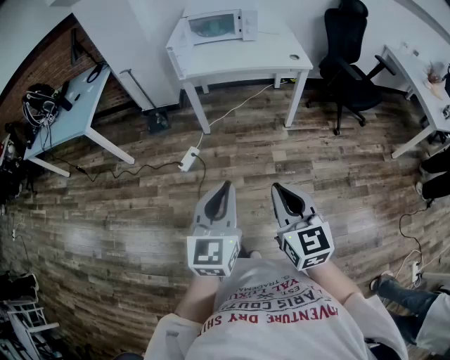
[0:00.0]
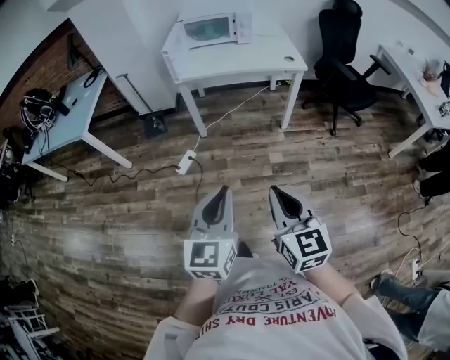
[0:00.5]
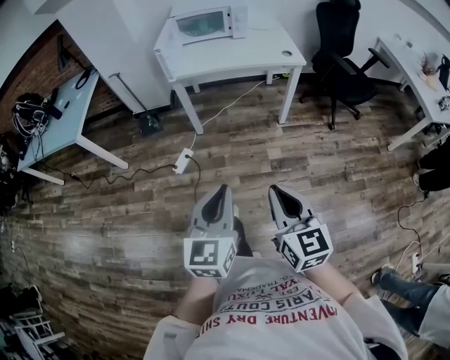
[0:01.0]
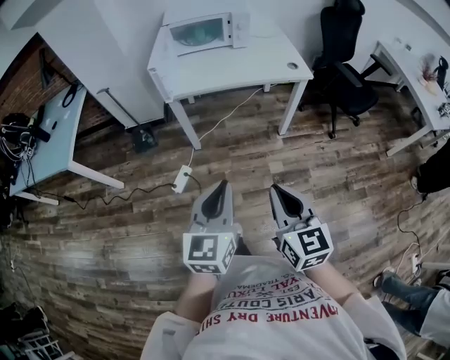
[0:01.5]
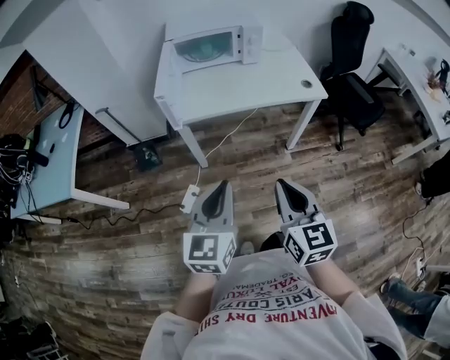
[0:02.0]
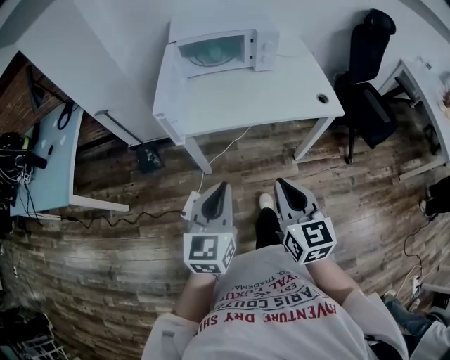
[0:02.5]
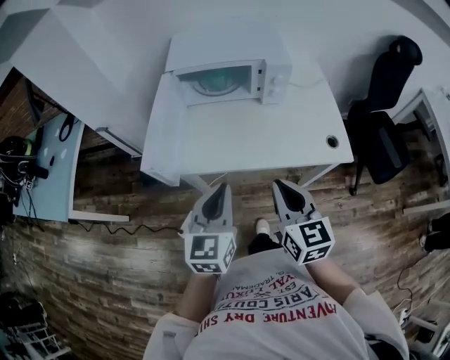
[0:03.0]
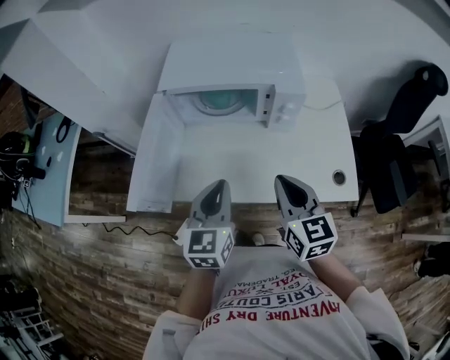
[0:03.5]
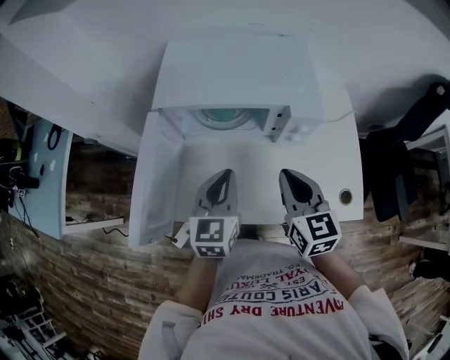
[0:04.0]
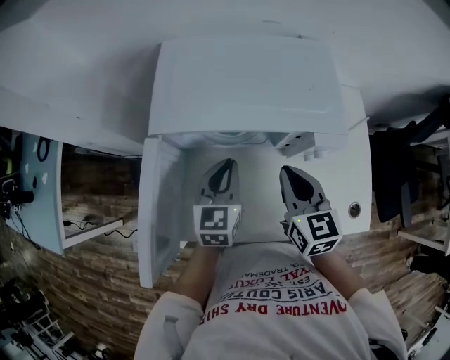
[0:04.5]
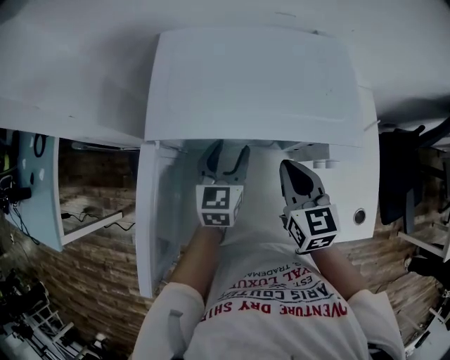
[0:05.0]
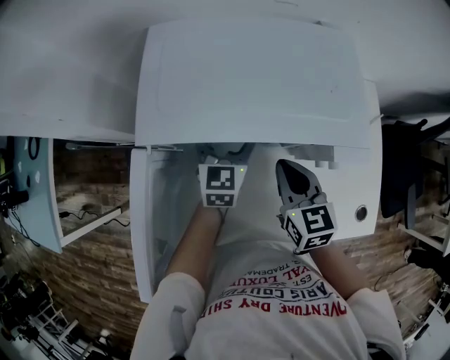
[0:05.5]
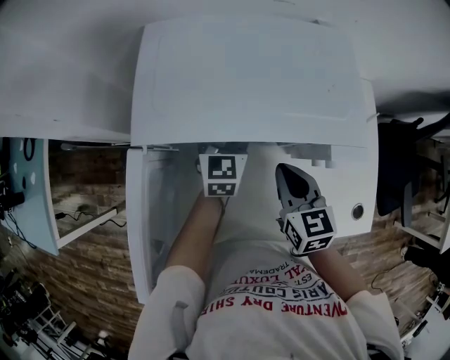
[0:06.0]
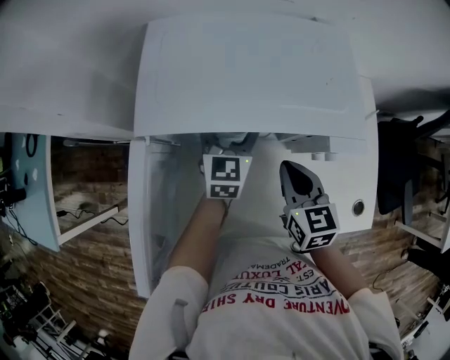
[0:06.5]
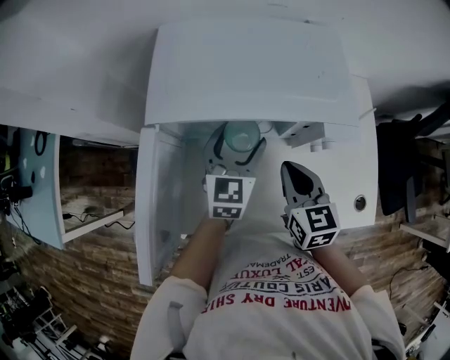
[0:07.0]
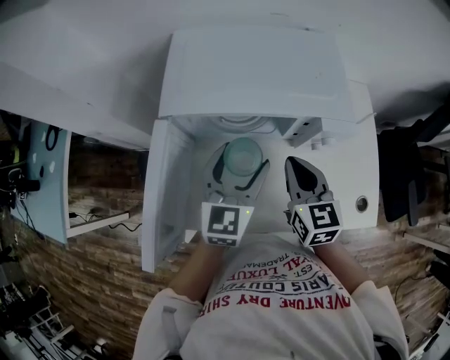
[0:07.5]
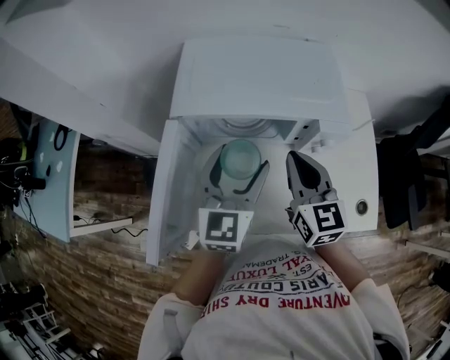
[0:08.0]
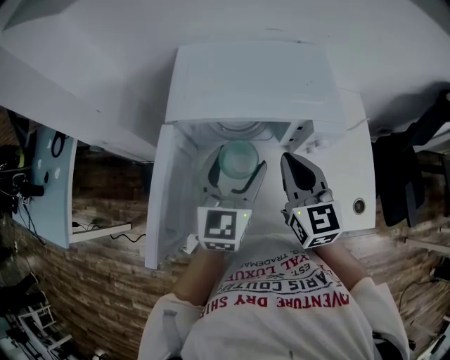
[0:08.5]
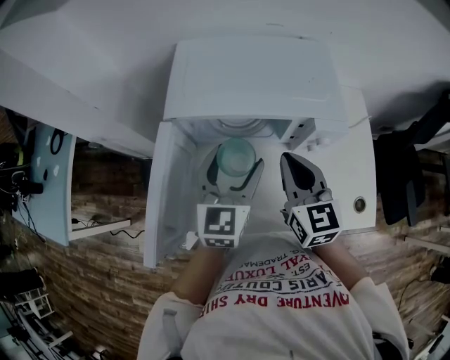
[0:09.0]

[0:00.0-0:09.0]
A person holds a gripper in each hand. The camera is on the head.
0:00.0 to 0:02.0: The two grippers go approximately 35 cm forward.
0:02.0 to 0:04.5: Both grippers are carried forward, about 60 cm.
0:04.5 to 0:07.0: The left gripper goes forward and returns, about 15 cm each way, and opens.
0:07.0 to 0:09.0: The left gripper shifts approximately 10 cm upward and backward. Meanwhile the right gripper is displaced upward by roughly 10 cm.

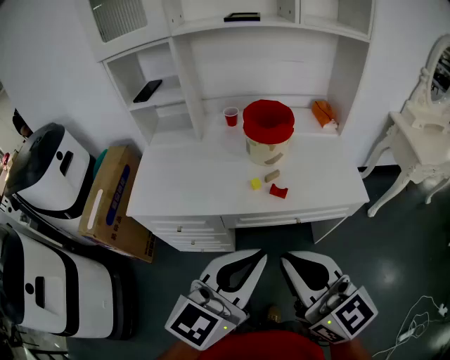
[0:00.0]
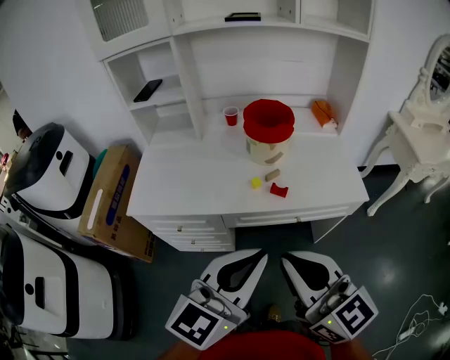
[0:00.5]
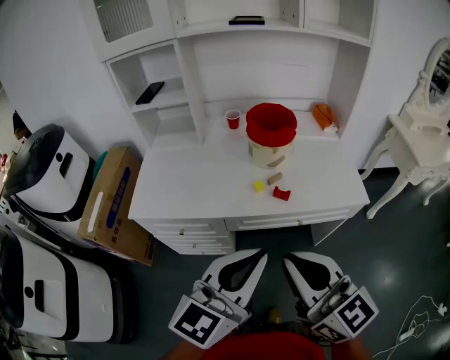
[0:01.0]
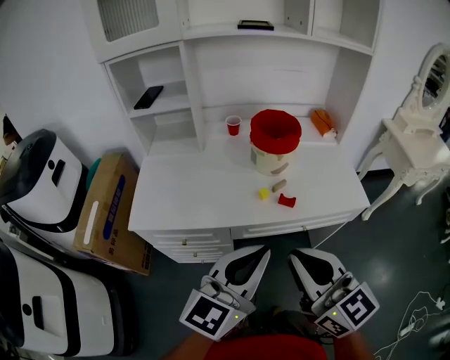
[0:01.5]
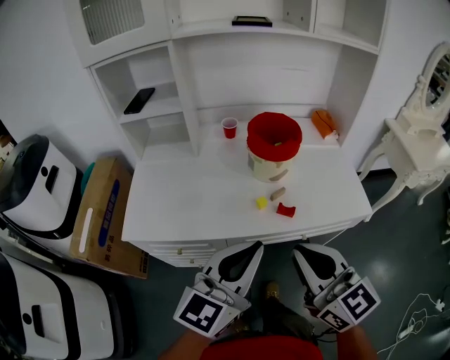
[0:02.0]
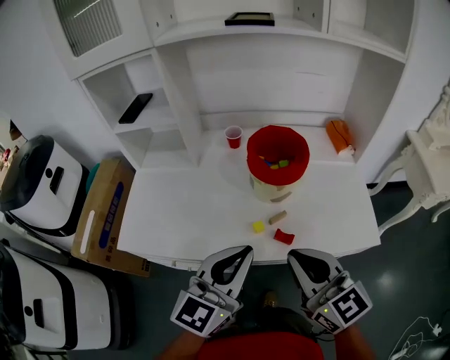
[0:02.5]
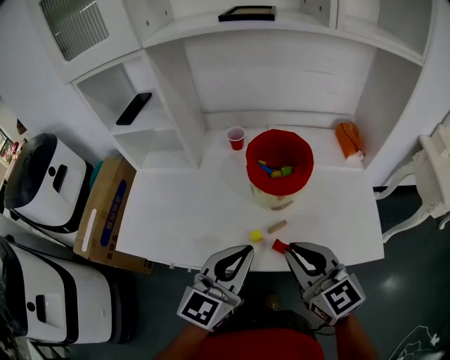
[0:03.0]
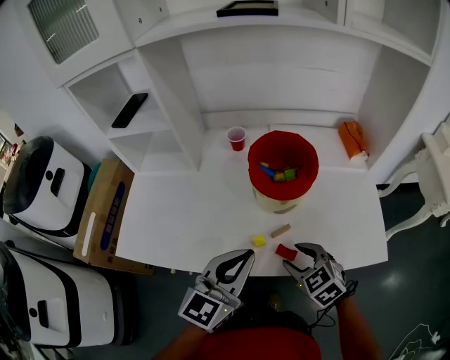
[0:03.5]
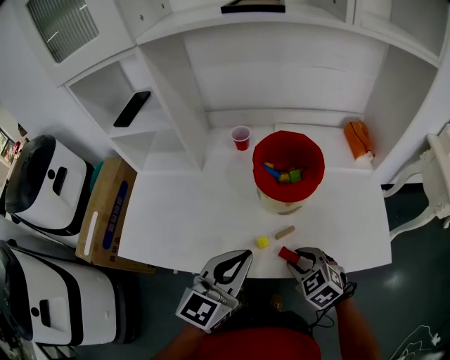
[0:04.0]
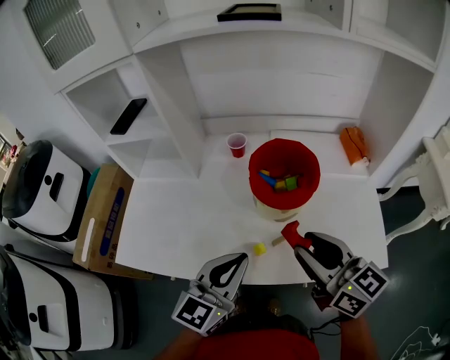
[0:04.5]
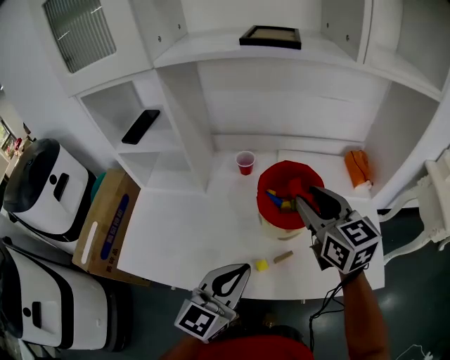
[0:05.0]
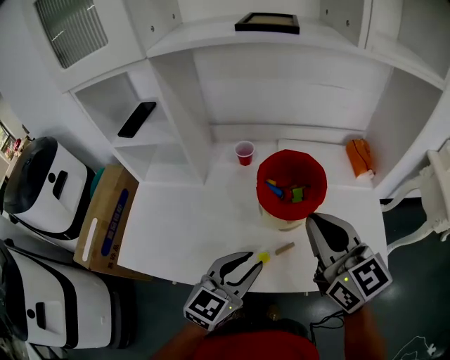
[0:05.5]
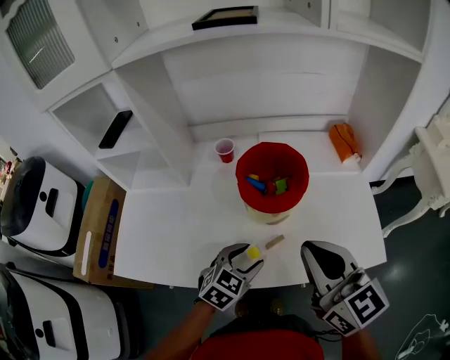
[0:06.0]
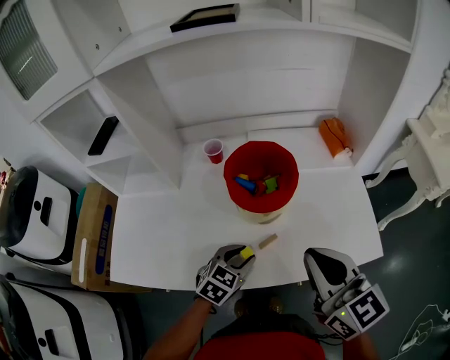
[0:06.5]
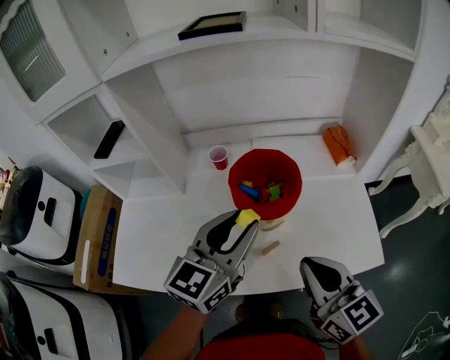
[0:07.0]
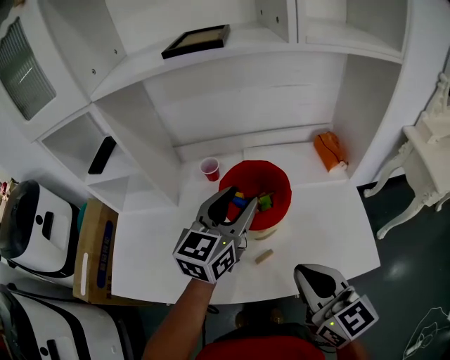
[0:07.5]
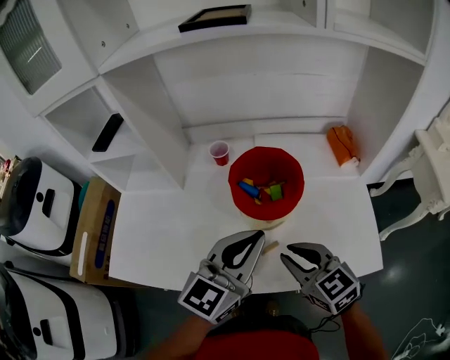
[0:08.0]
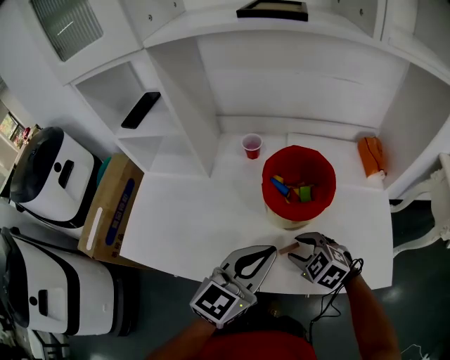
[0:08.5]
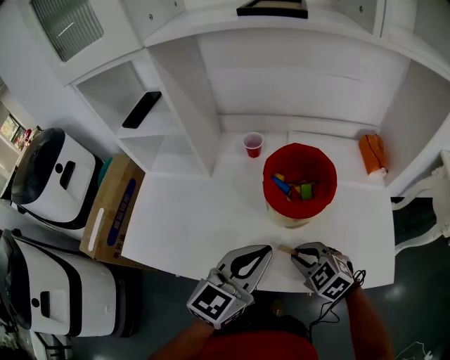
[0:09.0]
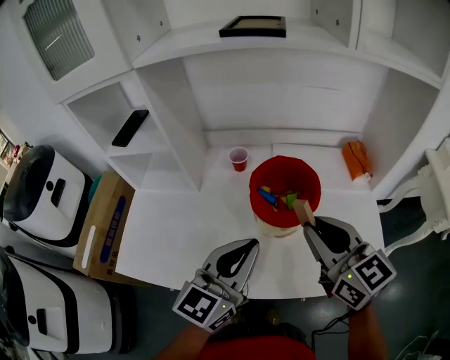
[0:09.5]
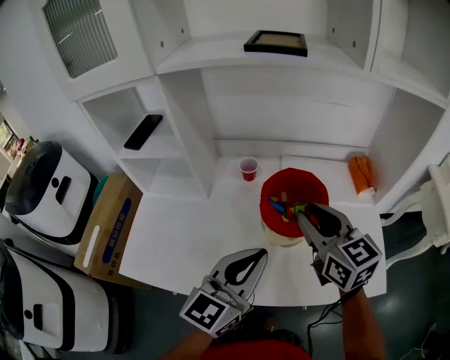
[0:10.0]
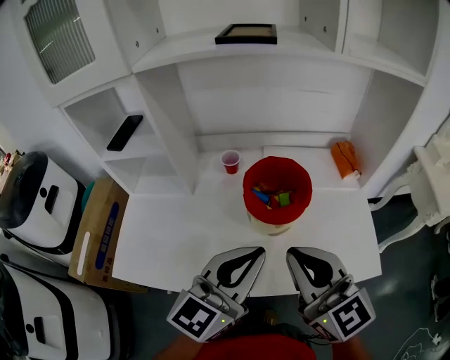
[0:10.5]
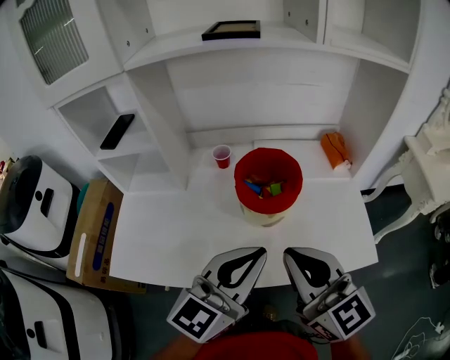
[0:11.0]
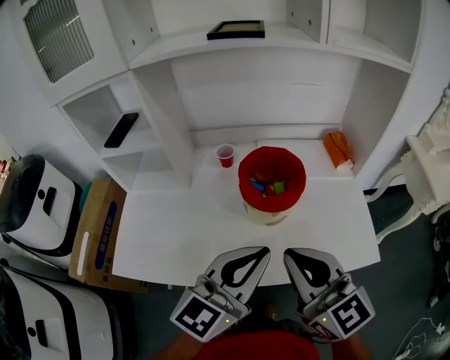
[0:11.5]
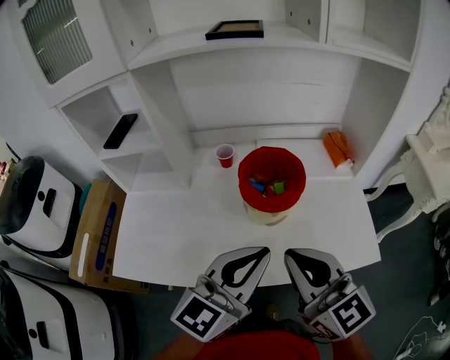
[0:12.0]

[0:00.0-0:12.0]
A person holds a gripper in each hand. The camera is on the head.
0:00.0 to 0:02.0: The left gripper moves forward and to the left, about 10 cm, while the right gripper shifts approximately 10 cm forward.
0:02.0 to 0:04.0: The left gripper moves forward and downward, roughly 20 cm. The right gripper goes approximately 30 cm downward and forward, tilts its fingers approximately 50 degrees downward, and opens up.
0:04.0 to 0:06.0: The right gripper heads upward, covering about 25 cm, angles its fingers upward, by roughly 40 degrees, and closes up. The left gripper is displaced downward by approximately 15 cm, points its fingers some 30 degrees further downward, and opens up.
0:06.0 to 0:08.0: The right gripper travels downward by about 15 cm, changes its angle by about 20 degrees, and opens its fingers, while the left gripper is displaced upward by about 20 cm, angles its fingers upward, by some 40 degrees, and closes up.
0:08.0 to 0:10.0: The right gripper travels upward and forward by about 15 cm, while the left gripper goes roughly 5 cm to the left.
0:10.0 to 0:12.0: The left gripper heads backward, covering some 5 cm; the right gripper goes approximately 15 cm backward, and closes up.

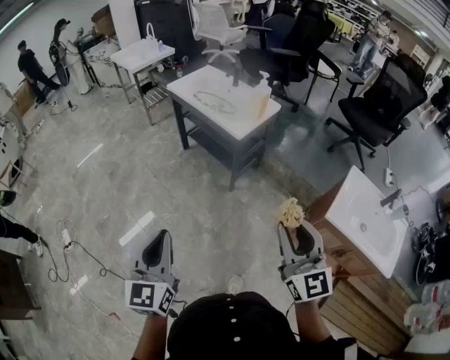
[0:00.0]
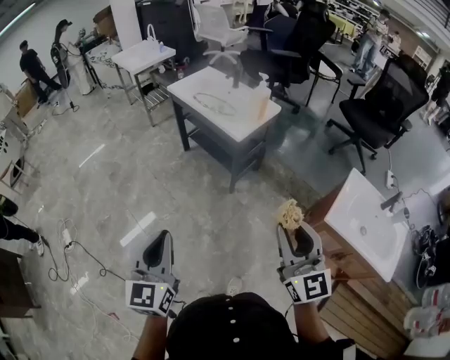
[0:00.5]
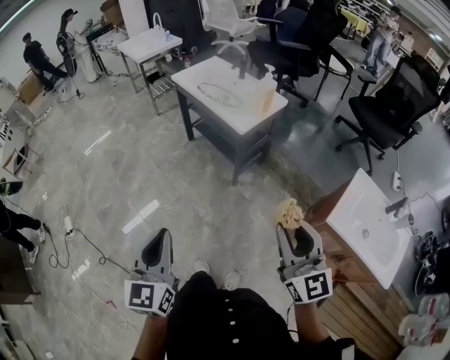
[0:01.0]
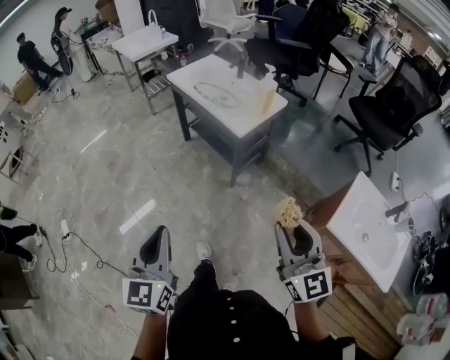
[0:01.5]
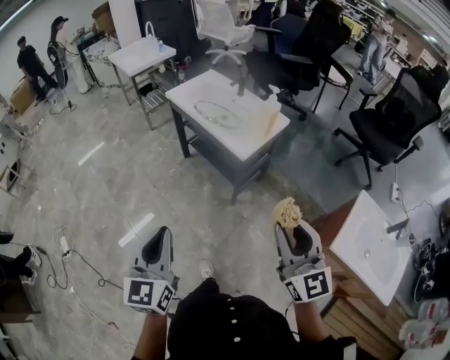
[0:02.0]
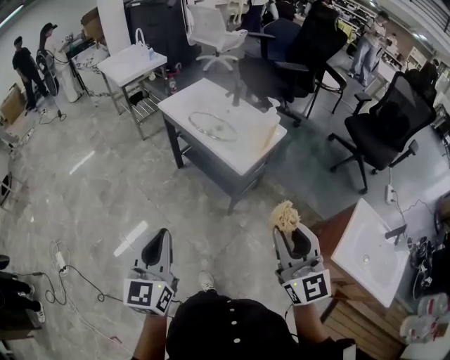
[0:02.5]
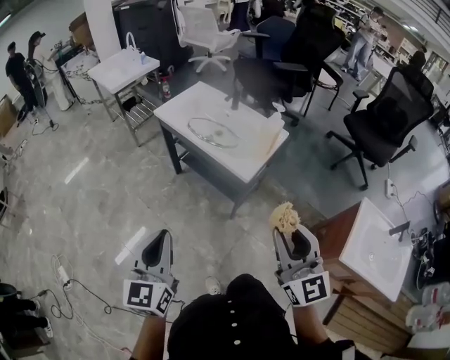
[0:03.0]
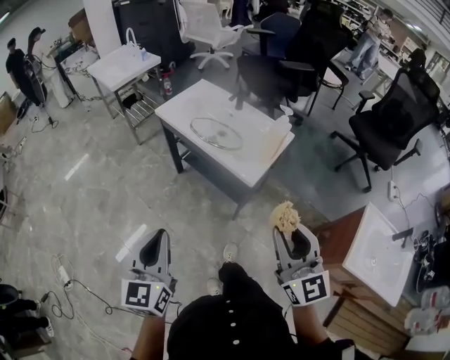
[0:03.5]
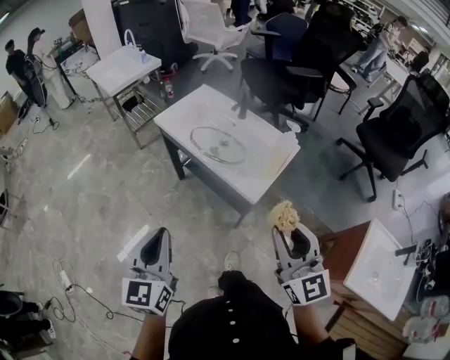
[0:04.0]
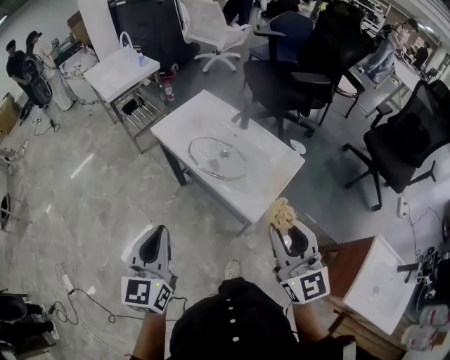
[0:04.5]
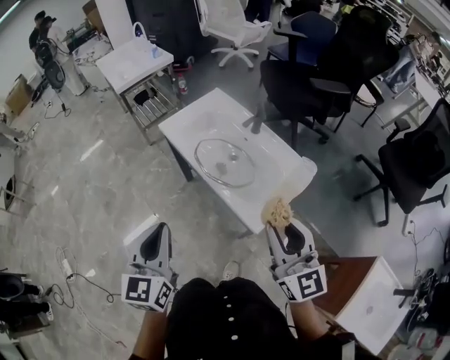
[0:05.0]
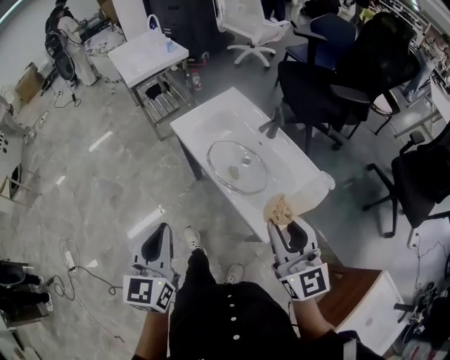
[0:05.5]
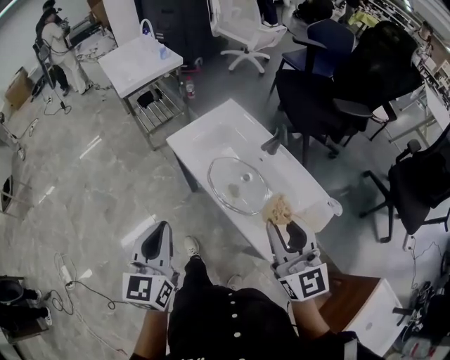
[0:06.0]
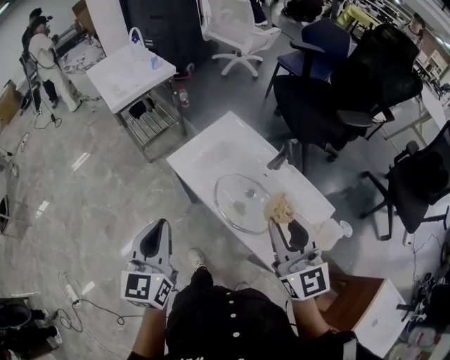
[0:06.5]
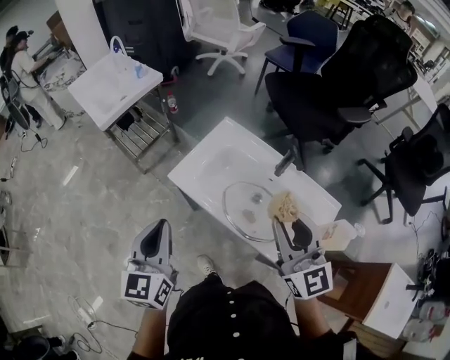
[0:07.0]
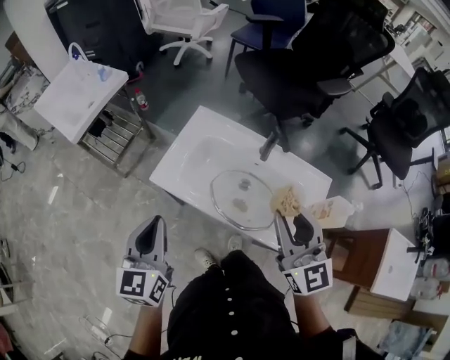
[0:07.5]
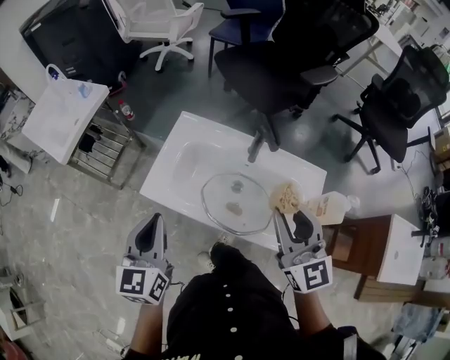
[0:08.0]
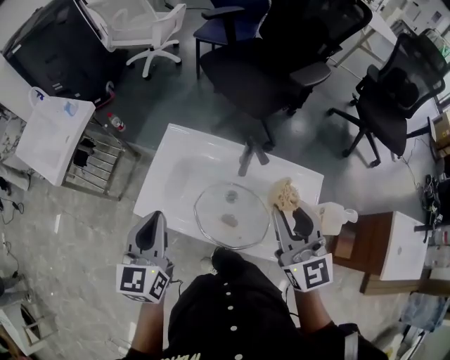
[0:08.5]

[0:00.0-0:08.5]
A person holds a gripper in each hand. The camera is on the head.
0:00.0 to 0:02.0: The two grippers go approximately 15 cm forward.
0:02.0 to 0:04.0: Both grippers travel together forward, approximately 25 cm.
0:04.0 to 0:06.5: Both grippers travel together forward, roughly 35 cm.
0:06.5 to 0:08.5: The right gripper ends up approximately 10 cm from where it was, and changes its angle by some 30 degrees, while the left gripper changes place by roughly 25 cm, and changes its angle by about 30 degrees.
